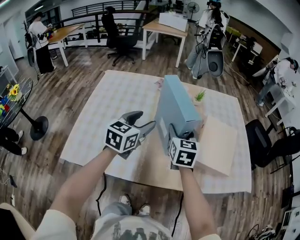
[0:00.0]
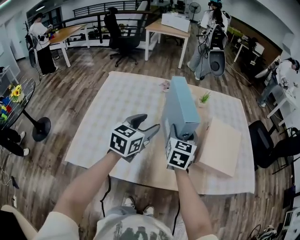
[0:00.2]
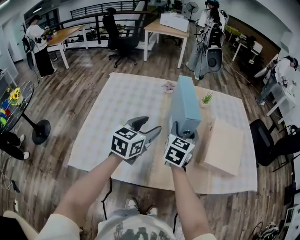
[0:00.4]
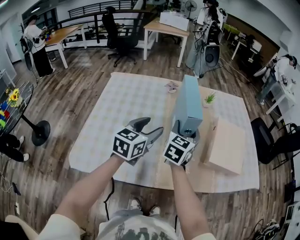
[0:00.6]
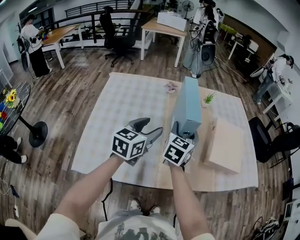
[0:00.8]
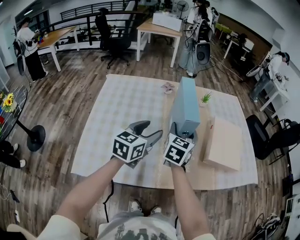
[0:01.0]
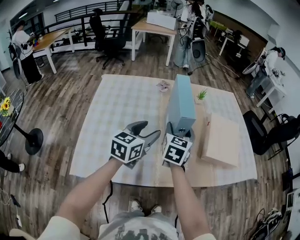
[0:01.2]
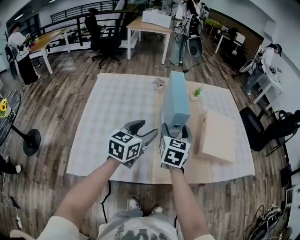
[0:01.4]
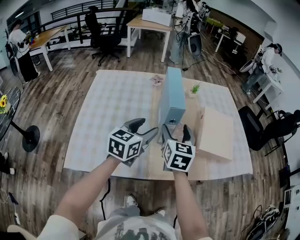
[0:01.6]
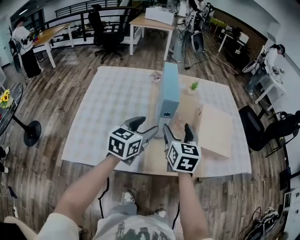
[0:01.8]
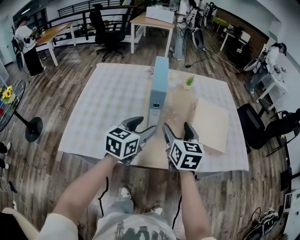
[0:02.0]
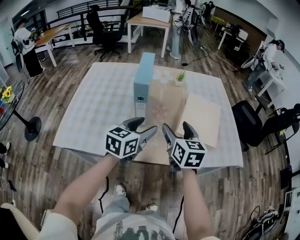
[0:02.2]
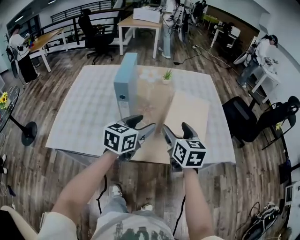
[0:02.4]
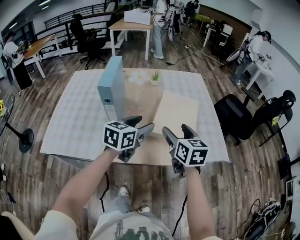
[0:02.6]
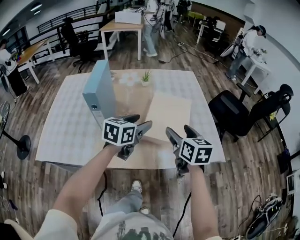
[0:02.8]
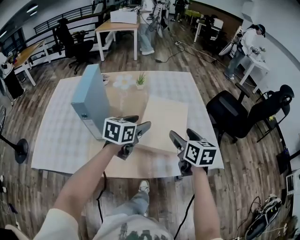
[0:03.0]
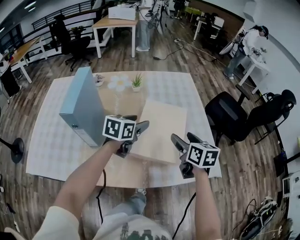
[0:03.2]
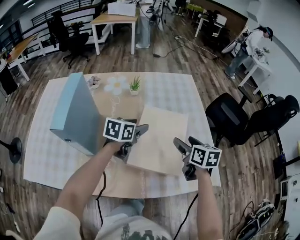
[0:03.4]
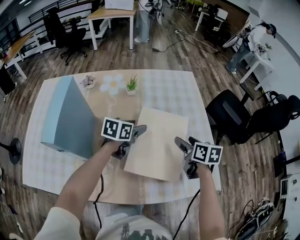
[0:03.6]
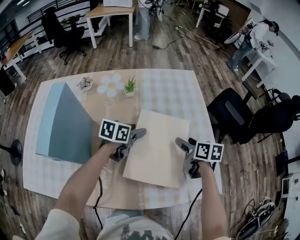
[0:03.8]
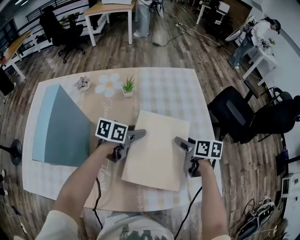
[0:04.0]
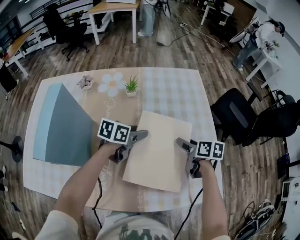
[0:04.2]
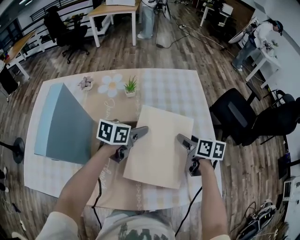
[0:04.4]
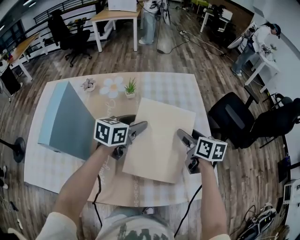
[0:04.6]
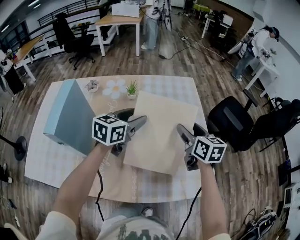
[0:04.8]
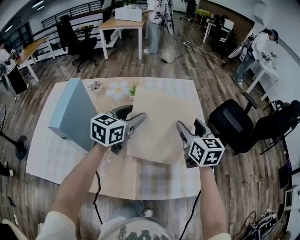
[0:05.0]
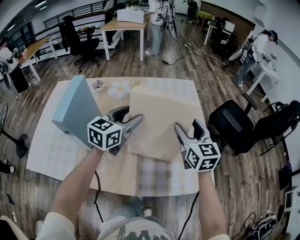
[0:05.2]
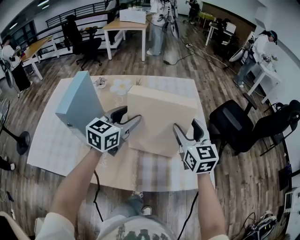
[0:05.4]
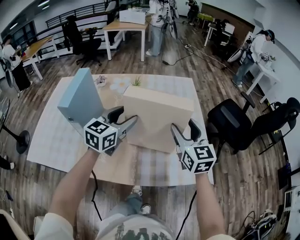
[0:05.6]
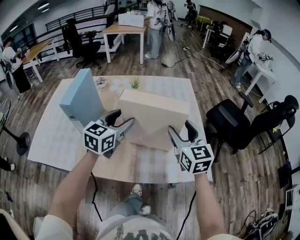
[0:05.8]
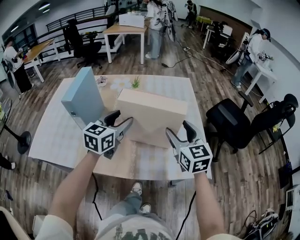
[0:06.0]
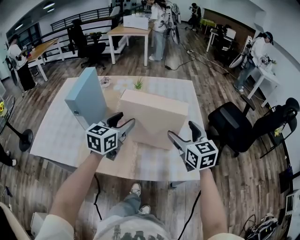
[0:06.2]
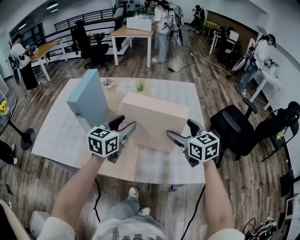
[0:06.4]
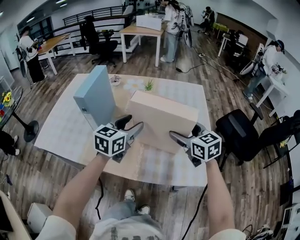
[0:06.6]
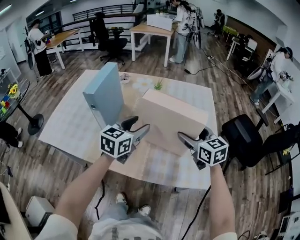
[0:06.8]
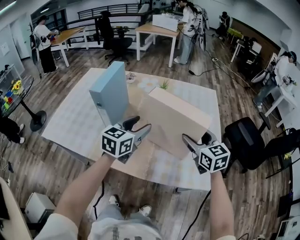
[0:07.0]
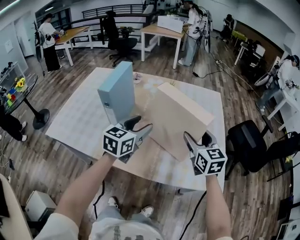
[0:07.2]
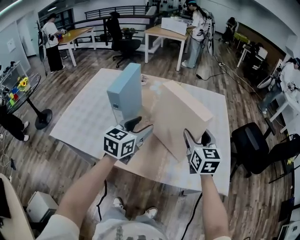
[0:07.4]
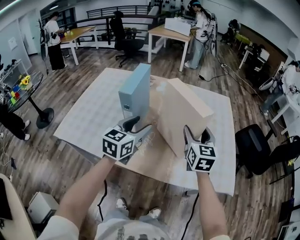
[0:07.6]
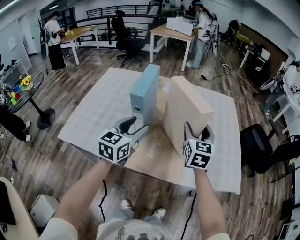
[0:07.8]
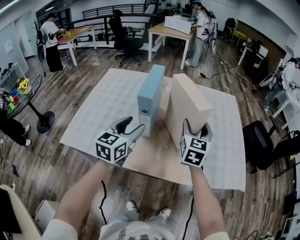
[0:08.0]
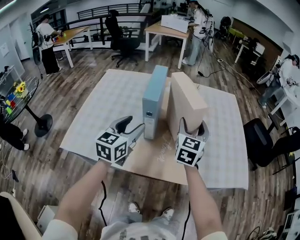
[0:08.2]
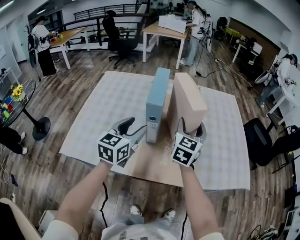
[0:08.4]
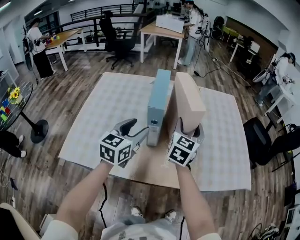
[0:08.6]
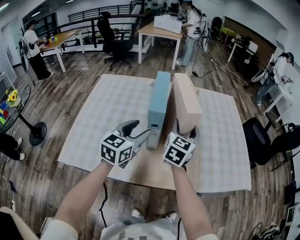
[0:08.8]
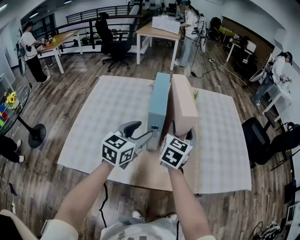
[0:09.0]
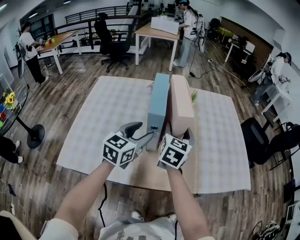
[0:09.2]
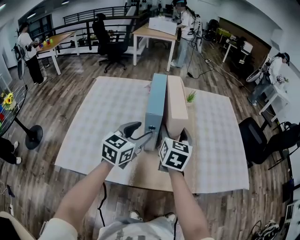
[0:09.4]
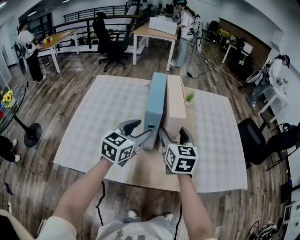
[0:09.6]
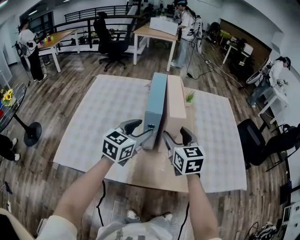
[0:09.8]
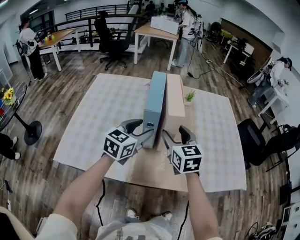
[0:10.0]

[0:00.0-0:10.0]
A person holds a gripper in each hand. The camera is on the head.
0:00.0 to 0:01.4: The left gripper shifts by roughly 5 cm. Meanwhile the right gripper goes approximately 5 cm to the left.
0:01.4 to 0:02.8: Both grippers move to the right, approximately 35 cm. The right gripper turns by about 20 degrees.
0:02.8 to 0:04.2: Both grippers move forward and downward, about 30 cm. The right gripper changes its angle by about 30 degrees. The left gripper rotates about 30 degrees.
0:04.2 to 0:05.8: The grippers both shift upward and backward by some 25 cm. The right gripper points its fingers some 30 degrees further upward. The left gripper changes its angle by approximately 50 degrees.
0:05.8 to 0:07.2: Both grippers move to the left, roughly 5 cm.
0:07.2 to 0:08.6: The grippers both shift to the left by some 25 cm. The right gripper rotates some 40 degrees.
0:08.6 to 0:10.0: The right gripper moves some 5 cm, and turns by about 30 degrees.

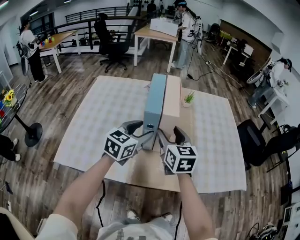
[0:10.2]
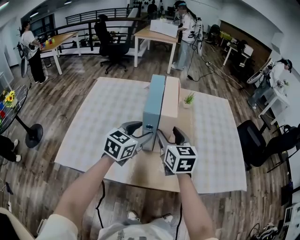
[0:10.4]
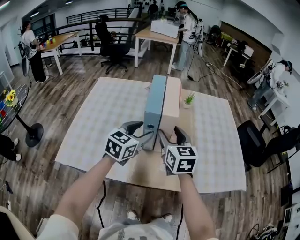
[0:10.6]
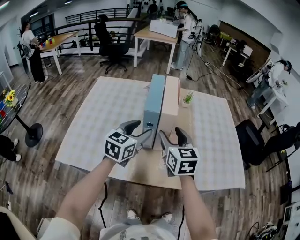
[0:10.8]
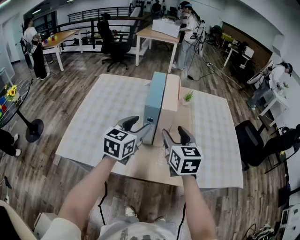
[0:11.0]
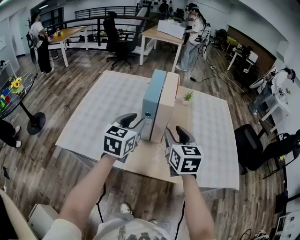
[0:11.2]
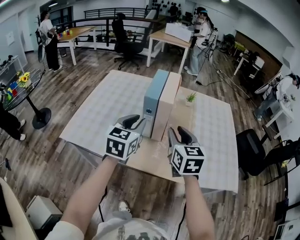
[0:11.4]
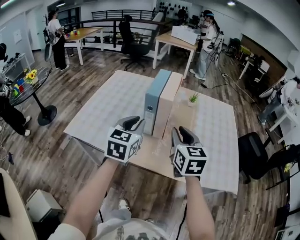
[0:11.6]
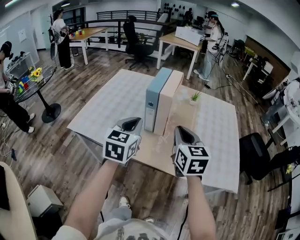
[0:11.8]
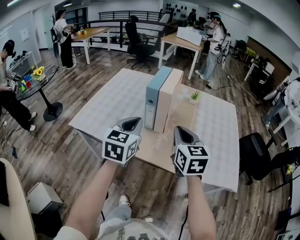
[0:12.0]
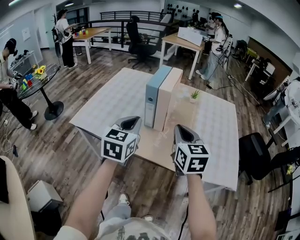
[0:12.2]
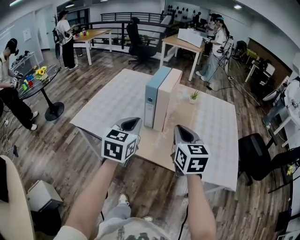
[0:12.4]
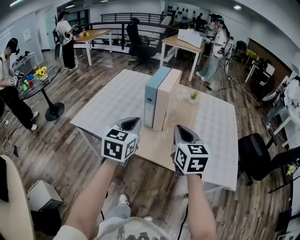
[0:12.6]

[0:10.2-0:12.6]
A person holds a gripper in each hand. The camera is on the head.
0:10.2 to 0:11.4: The left gripper heads backward and upward, covering roughly 10 cm, changes its angle by some 20 degrees, and closes up. Meanwhile the right gripper travels backward, to the right and upward by roughly 10 cm.
0:11.4 to 0:12.6: Both grippers travel together backward, about 10 cm.

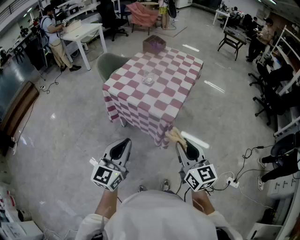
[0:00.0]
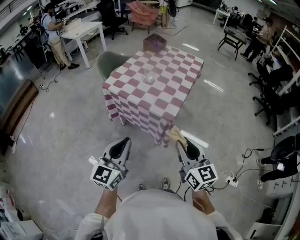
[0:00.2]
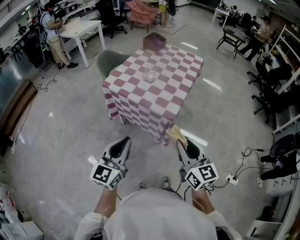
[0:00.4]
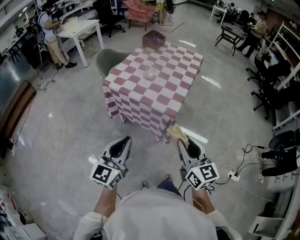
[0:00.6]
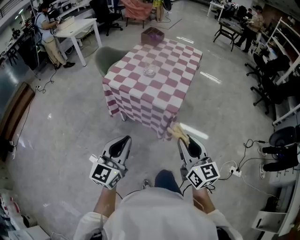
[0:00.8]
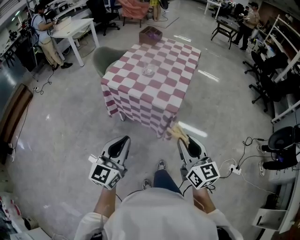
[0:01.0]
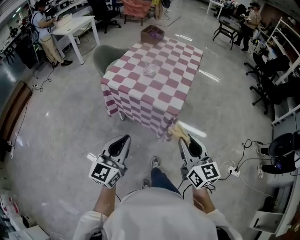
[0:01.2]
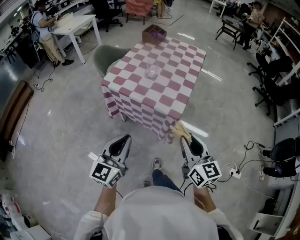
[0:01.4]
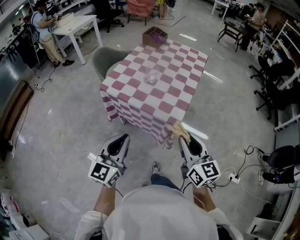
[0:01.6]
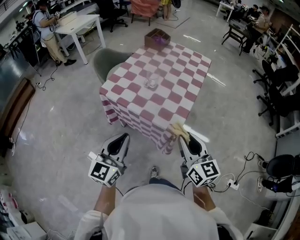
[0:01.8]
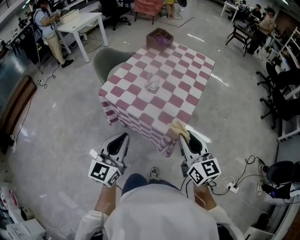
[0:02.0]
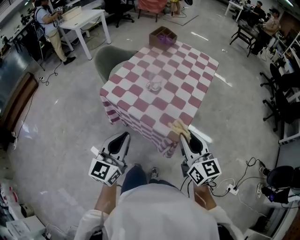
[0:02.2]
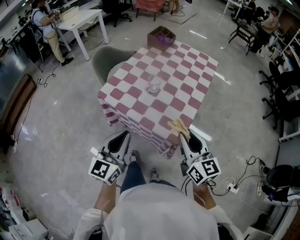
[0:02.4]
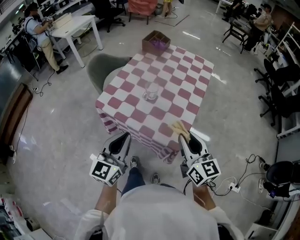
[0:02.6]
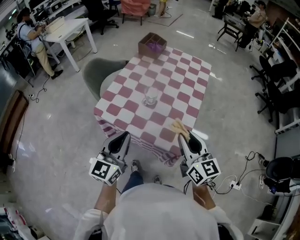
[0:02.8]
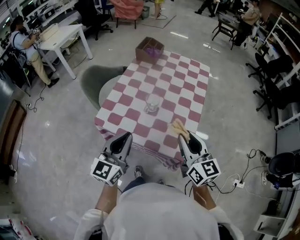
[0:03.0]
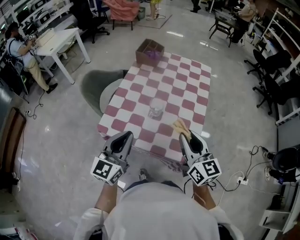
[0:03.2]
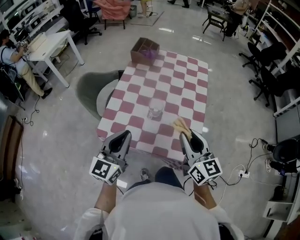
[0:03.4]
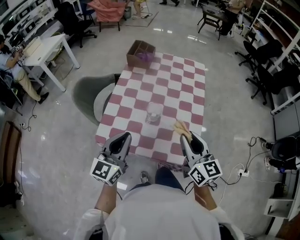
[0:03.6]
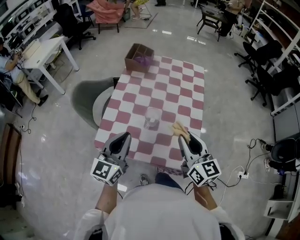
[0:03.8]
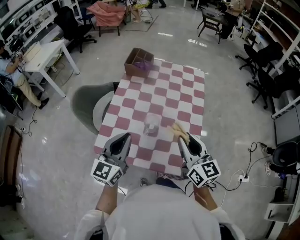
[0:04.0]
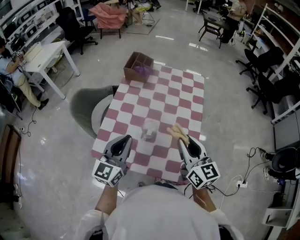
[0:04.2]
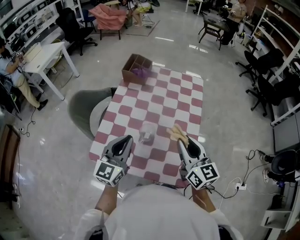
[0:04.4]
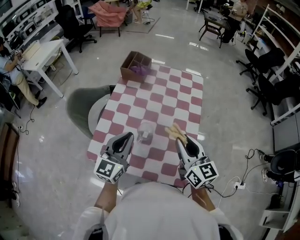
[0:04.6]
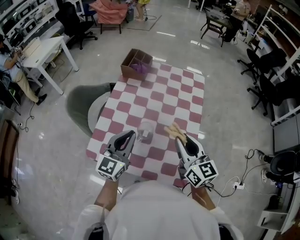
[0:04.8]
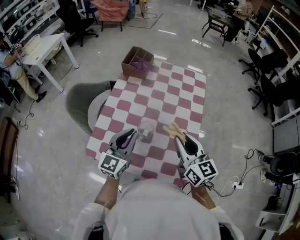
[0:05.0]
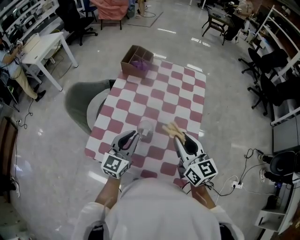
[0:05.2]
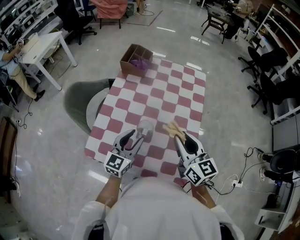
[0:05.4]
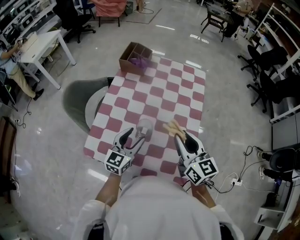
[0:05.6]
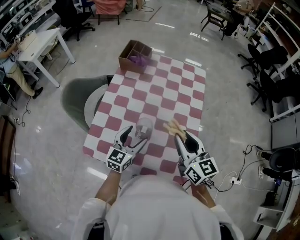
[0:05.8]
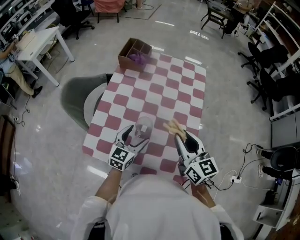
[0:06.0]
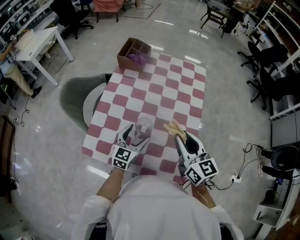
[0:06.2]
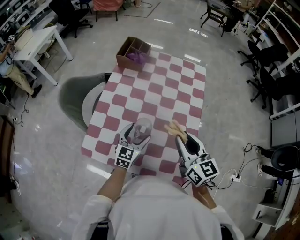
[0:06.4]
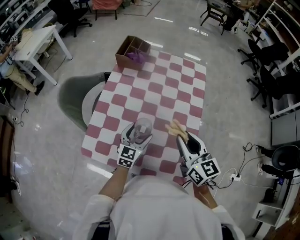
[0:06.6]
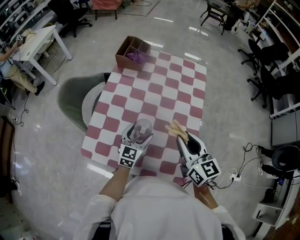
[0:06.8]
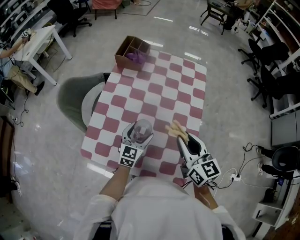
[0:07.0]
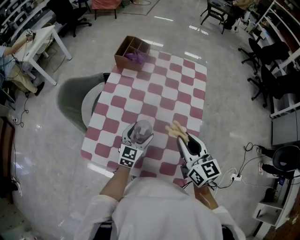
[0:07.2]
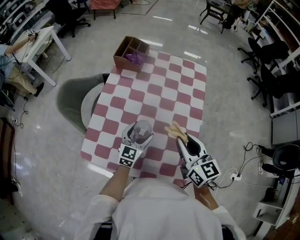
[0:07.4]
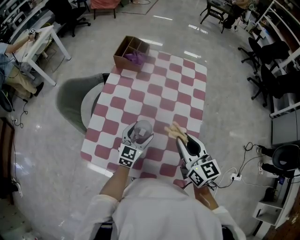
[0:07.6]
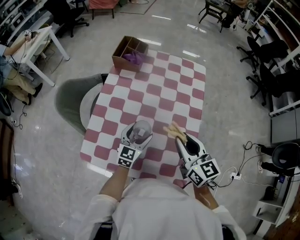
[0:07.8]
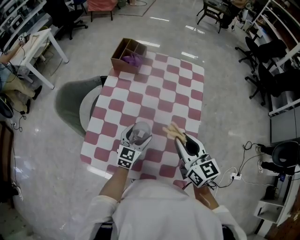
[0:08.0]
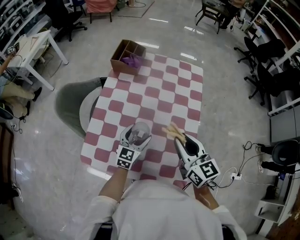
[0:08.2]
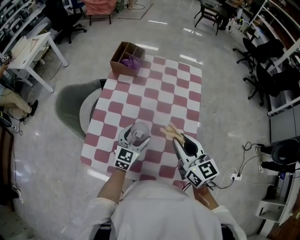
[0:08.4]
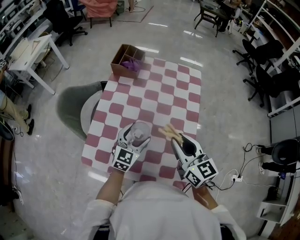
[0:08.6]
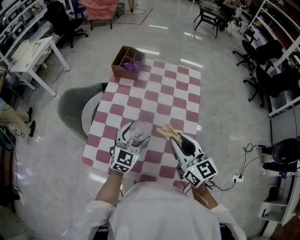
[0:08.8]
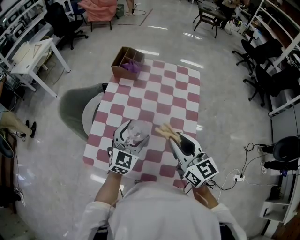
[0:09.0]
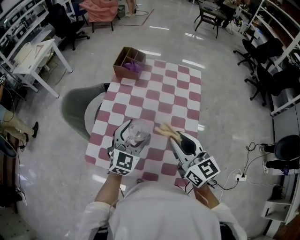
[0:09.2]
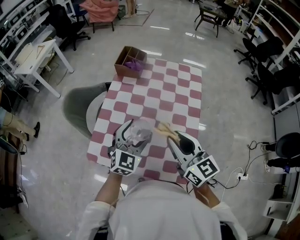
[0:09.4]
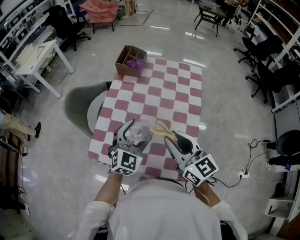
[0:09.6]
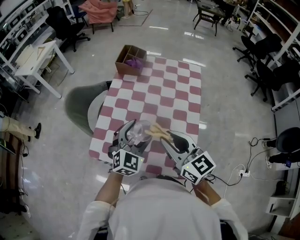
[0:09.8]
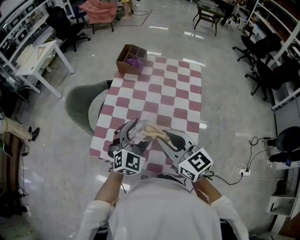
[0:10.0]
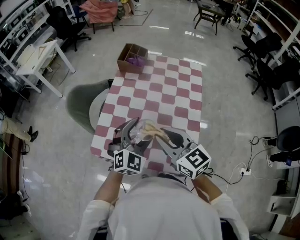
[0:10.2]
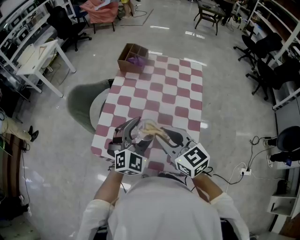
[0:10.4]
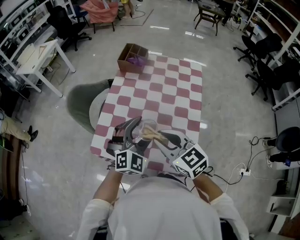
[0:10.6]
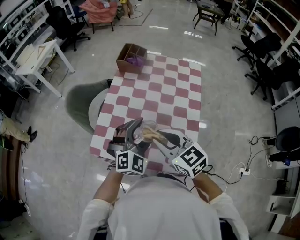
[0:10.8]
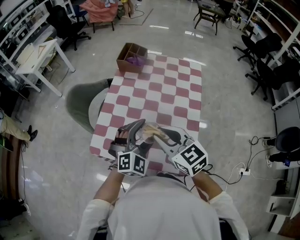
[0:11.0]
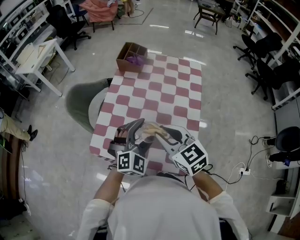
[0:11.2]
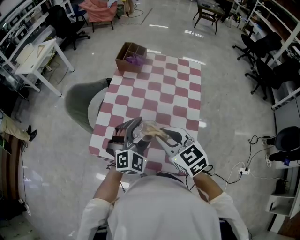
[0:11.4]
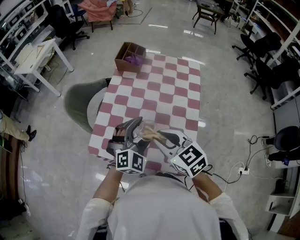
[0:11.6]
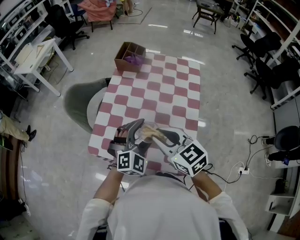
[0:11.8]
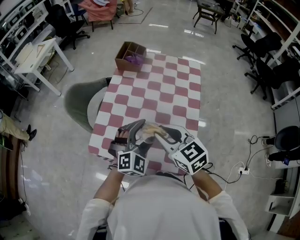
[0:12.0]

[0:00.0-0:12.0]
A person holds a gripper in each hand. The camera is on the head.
0:00.0 to 0:01.6: The left gripper shifts about 10 cm forward and to the left, while the right gripper goes roughly 10 cm forward.
0:01.6 to 0:03.0: Both grippers travel together forward, some 25 cm.
0:03.0 to 0:04.4: The two grippers go some 15 cm forward.
0:04.4 to 0:06.0: The left gripper heads downward, covering about 15 cm, and opens up.
0:06.0 to 0:07.6: The left gripper travels forward by approximately 5 cm.
0:07.6 to 0:09.0: The left gripper travels upward by roughly 10 cm, while the right gripper shifts about 5 cm upward.
0:09.0 to 0:10.4: The left gripper heads backward, covering approximately 5 cm, and turns by about 20 degrees; the right gripper goes about 10 cm to the left.
0:10.4 to 0:12.0: The grippers make only small movements.
